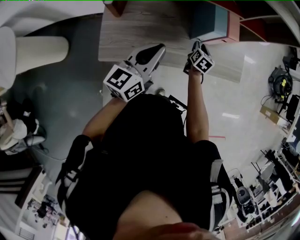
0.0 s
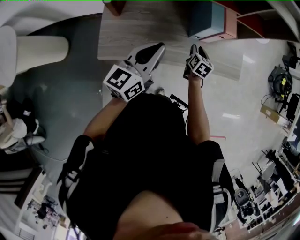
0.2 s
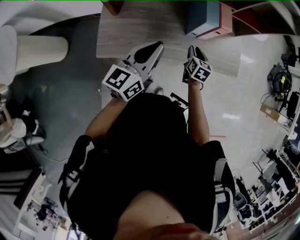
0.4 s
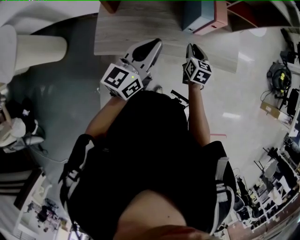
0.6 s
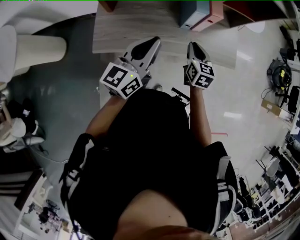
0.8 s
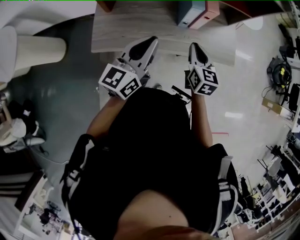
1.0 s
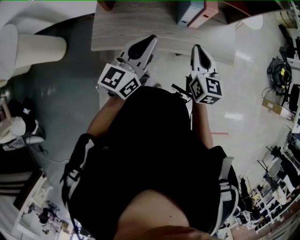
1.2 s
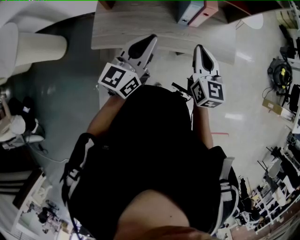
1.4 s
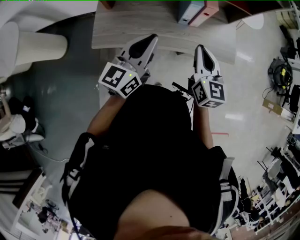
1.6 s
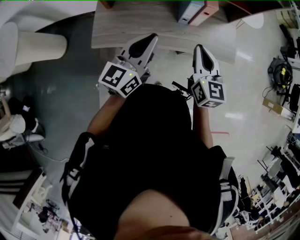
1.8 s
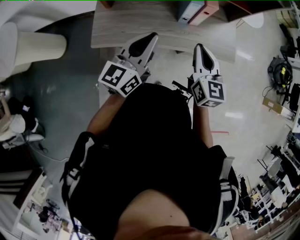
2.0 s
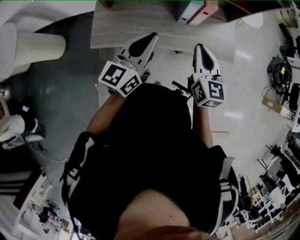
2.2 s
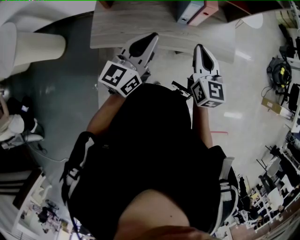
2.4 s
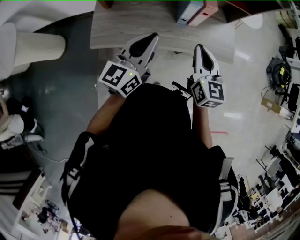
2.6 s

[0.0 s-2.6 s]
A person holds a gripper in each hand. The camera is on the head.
0.0 to 1.2 s: The right gripper heads upward and backward, covering about 30 cm, and swivels some 30 degrees. Meanwhile the left gripper travels to the right, backward and upward by roughly 10 cm.
1.2 to 2.6 s: There are only small adjustments of the grippers.

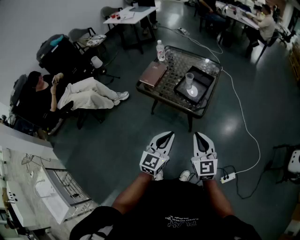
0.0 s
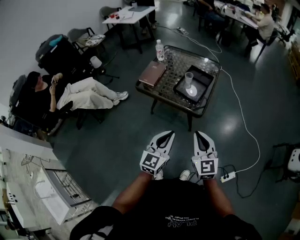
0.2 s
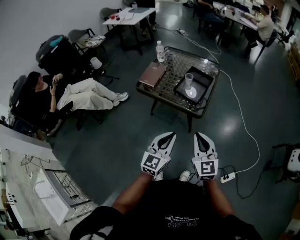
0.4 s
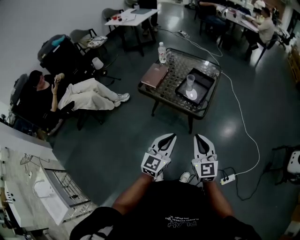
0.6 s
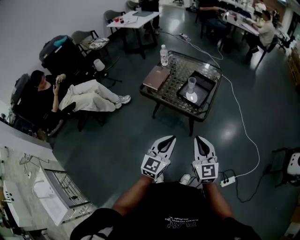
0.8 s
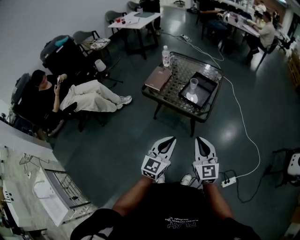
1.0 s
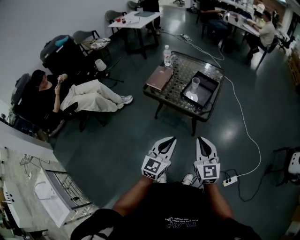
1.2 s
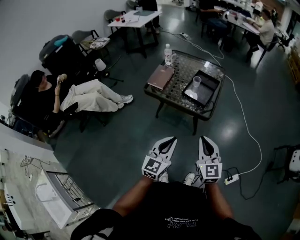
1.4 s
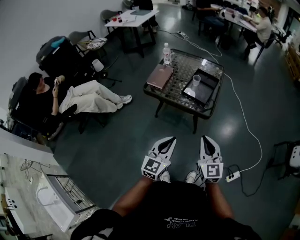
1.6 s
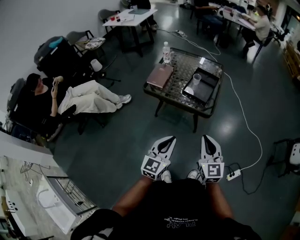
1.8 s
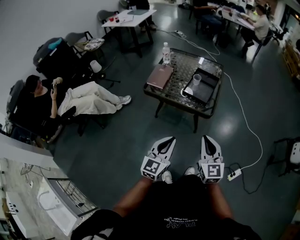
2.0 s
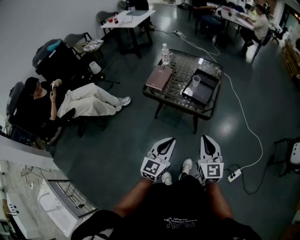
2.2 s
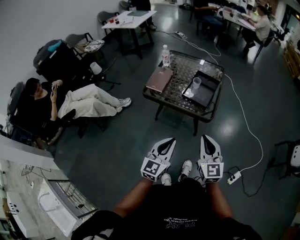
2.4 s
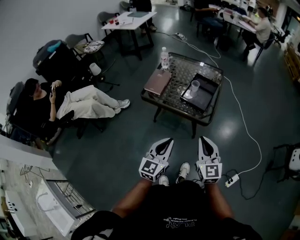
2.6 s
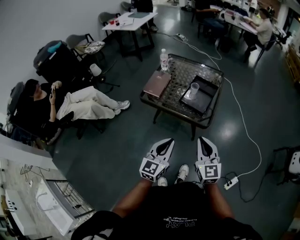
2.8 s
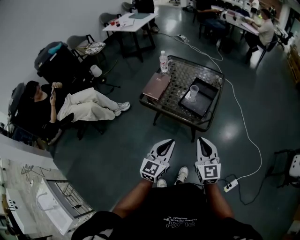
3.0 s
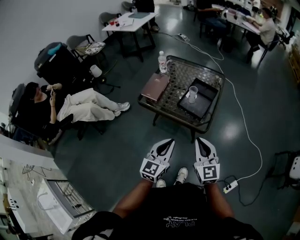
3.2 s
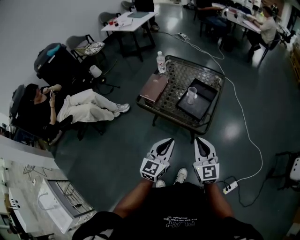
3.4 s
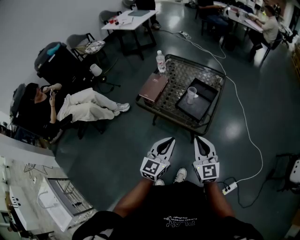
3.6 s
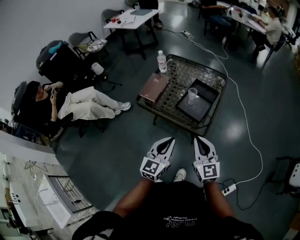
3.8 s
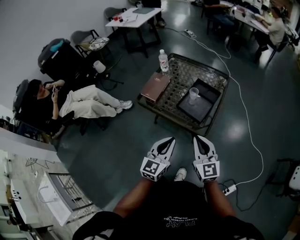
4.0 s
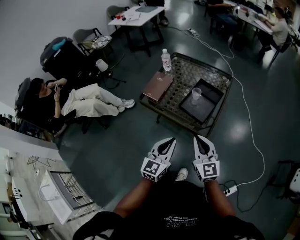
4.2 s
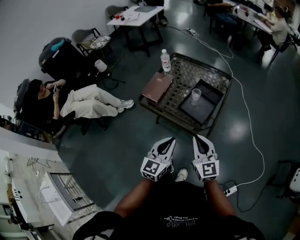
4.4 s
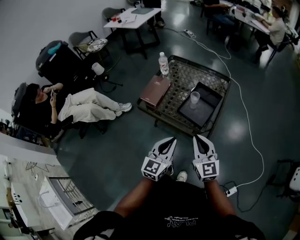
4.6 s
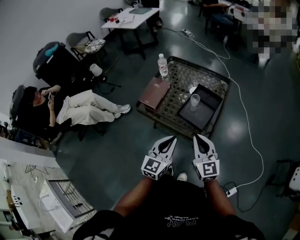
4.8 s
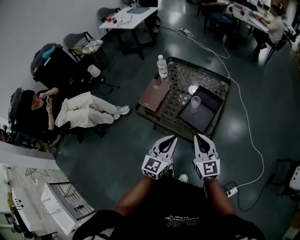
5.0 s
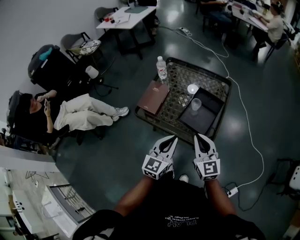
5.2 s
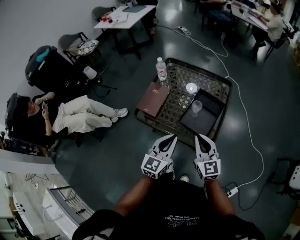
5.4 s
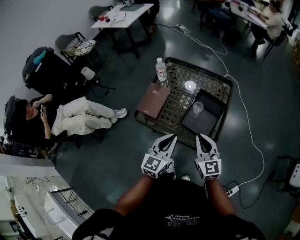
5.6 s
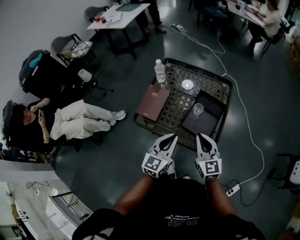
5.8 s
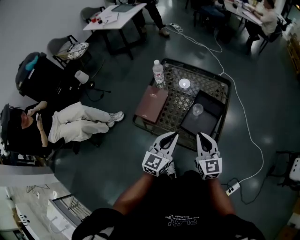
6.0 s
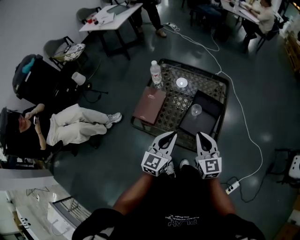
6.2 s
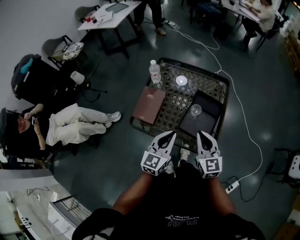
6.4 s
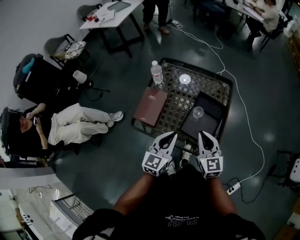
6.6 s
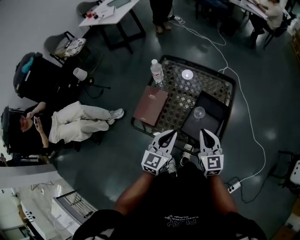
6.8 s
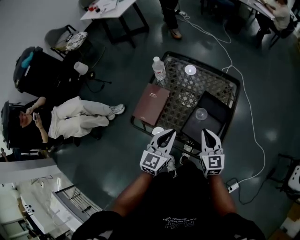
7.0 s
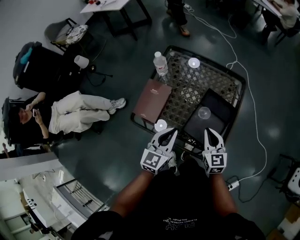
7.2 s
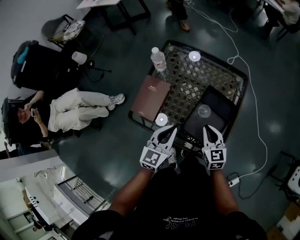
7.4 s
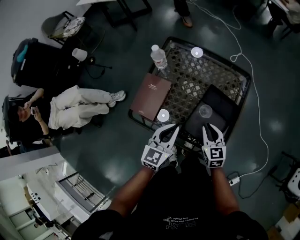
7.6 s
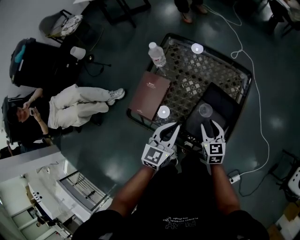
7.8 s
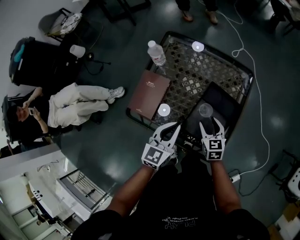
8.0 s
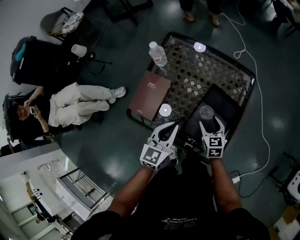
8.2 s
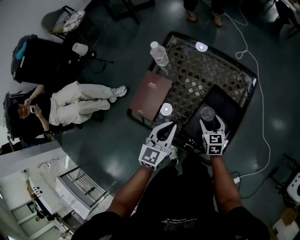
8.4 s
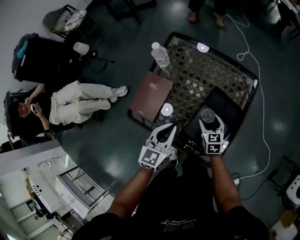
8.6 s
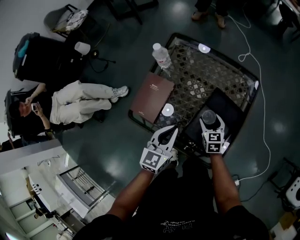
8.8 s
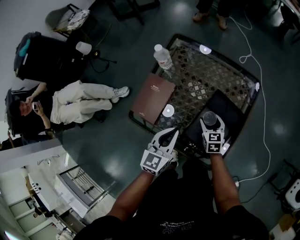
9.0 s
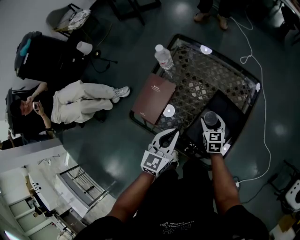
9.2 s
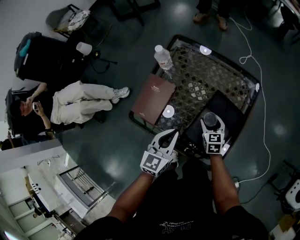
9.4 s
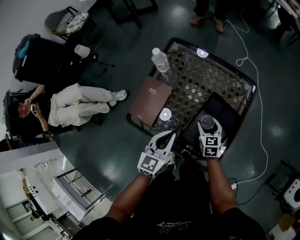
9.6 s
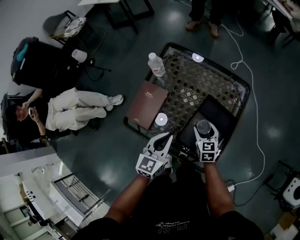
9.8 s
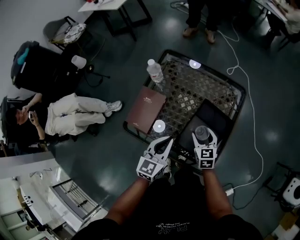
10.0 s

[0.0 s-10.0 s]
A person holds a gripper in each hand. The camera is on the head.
0.0 to 1.4 s: The right gripper moves some 5 cm. Meanwhile the left gripper is displaced to the left by roughly 5 cm.
1.4 to 2.8 s: The two grippers go about 5 cm forward.
2.8 to 4.2 s: The right gripper moves forward, approximately 10 cm, while the left gripper travels forward and to the right by roughly 10 cm.
4.2 to 5.8 s: The grippers both shift forward by about 15 cm.
5.8 to 7.2 s: Both grippers travel together forward and downward, roughly 15 cm.
7.2 to 8.6 s: The right gripper heads downward and forward, covering approximately 15 cm, and opens. The left gripper moves downward, roughly 5 cm.
8.6 to 10.0 s: The right gripper heads upward, covering about 5 cm.

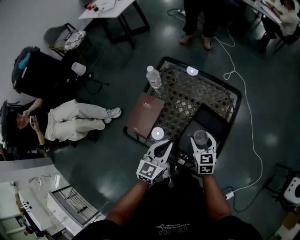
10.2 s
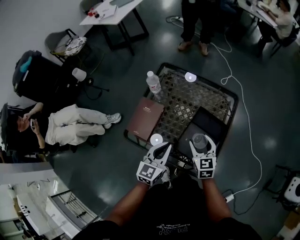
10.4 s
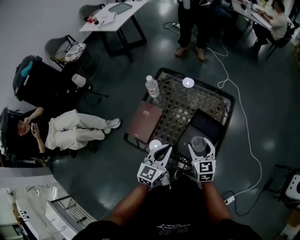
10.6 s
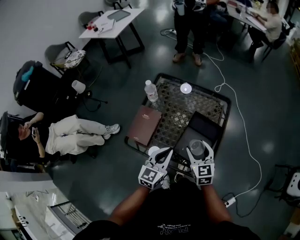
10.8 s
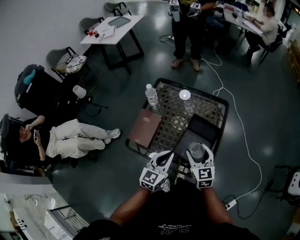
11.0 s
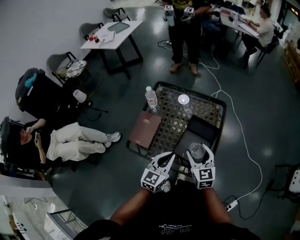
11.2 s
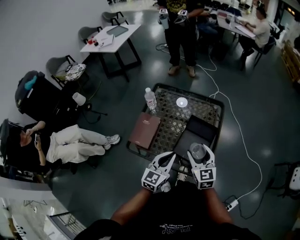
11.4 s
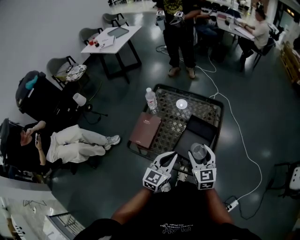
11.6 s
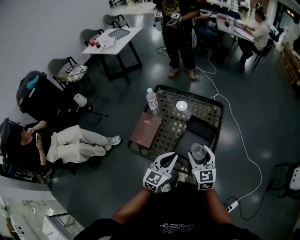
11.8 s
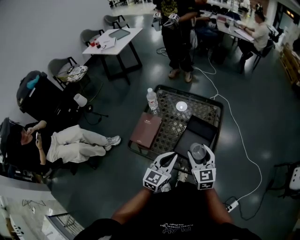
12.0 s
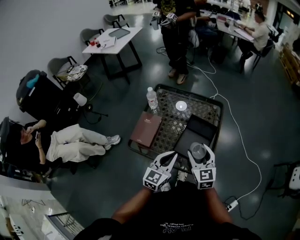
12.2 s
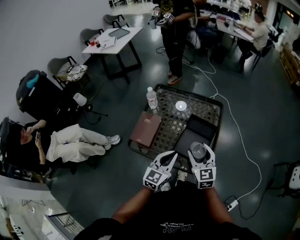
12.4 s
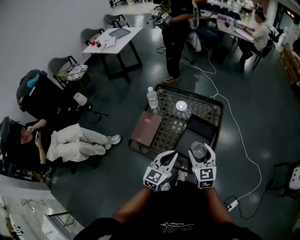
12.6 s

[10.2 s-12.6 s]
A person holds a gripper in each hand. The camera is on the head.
10.2 to 11.4 s: The left gripper heads upward and backward, covering about 10 cm, while the right gripper is displaced upward and backward by roughly 15 cm.
11.4 to 12.6 s: The grippers stay close to where they were, moving slightly.

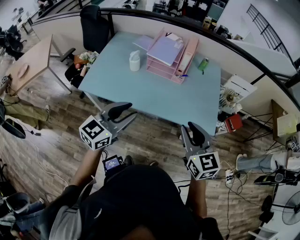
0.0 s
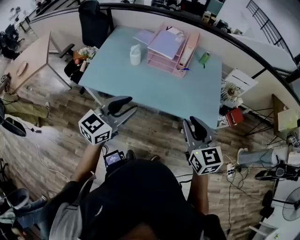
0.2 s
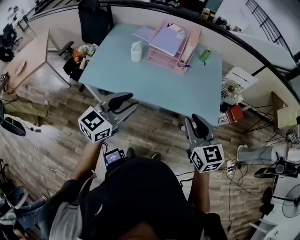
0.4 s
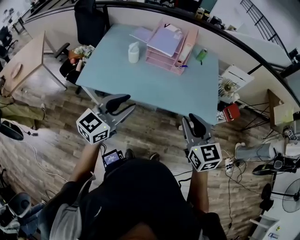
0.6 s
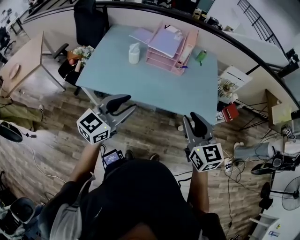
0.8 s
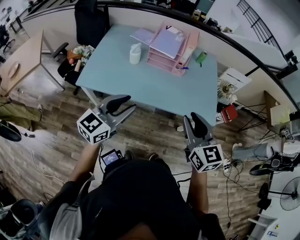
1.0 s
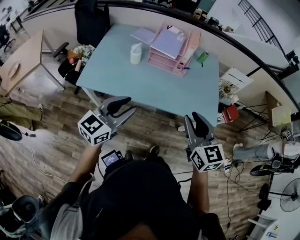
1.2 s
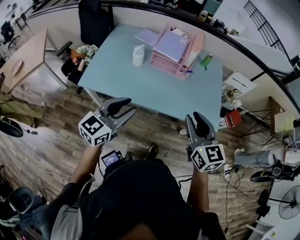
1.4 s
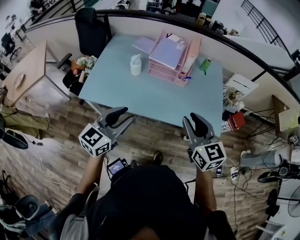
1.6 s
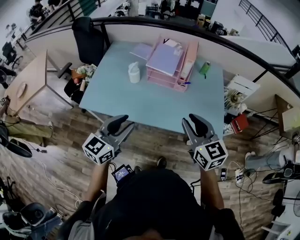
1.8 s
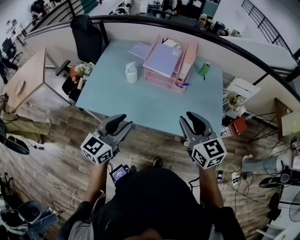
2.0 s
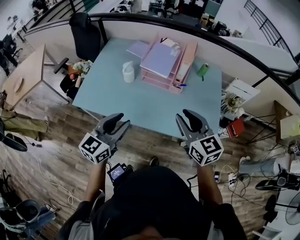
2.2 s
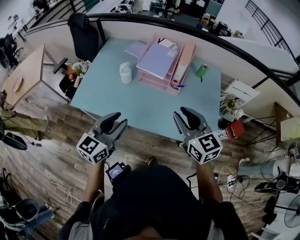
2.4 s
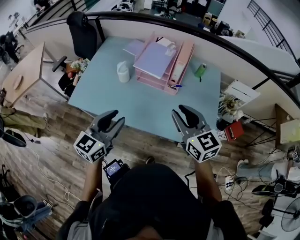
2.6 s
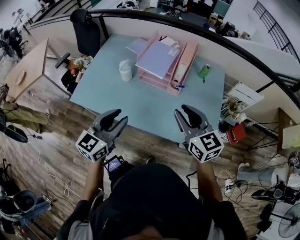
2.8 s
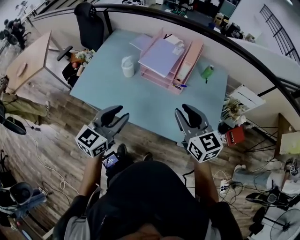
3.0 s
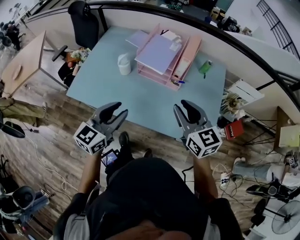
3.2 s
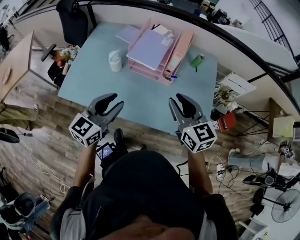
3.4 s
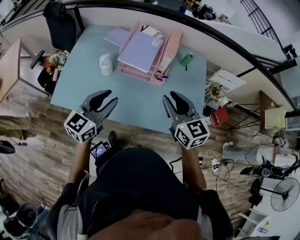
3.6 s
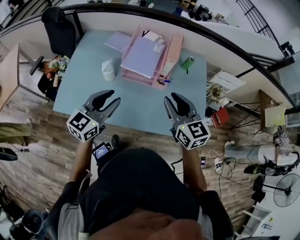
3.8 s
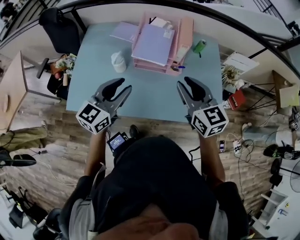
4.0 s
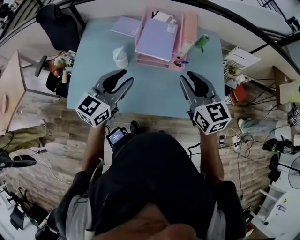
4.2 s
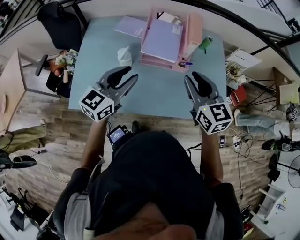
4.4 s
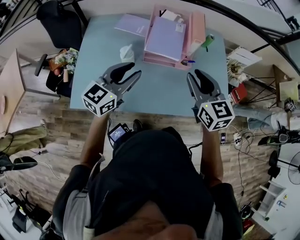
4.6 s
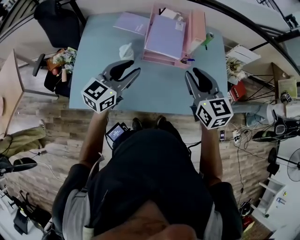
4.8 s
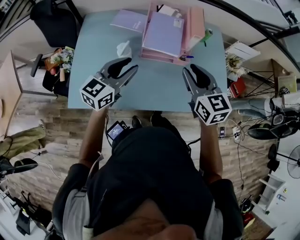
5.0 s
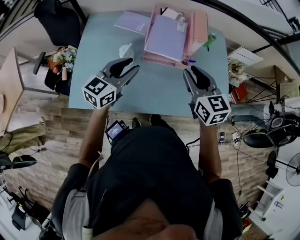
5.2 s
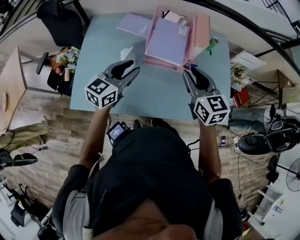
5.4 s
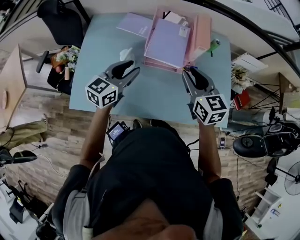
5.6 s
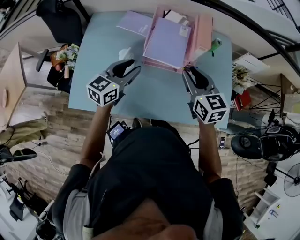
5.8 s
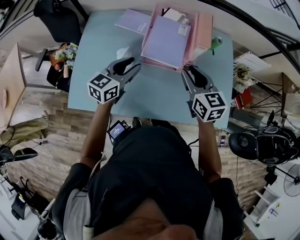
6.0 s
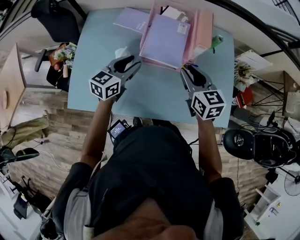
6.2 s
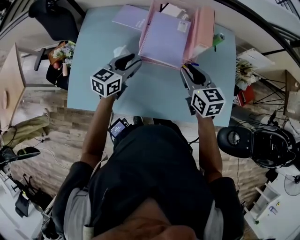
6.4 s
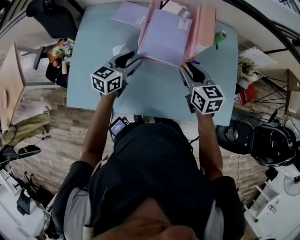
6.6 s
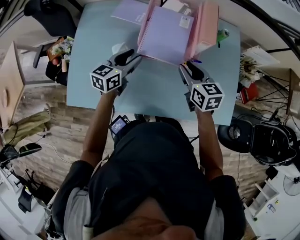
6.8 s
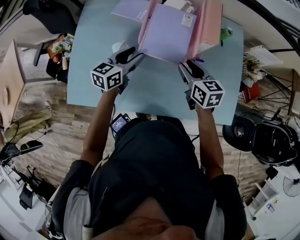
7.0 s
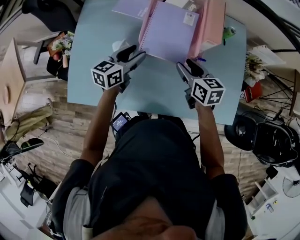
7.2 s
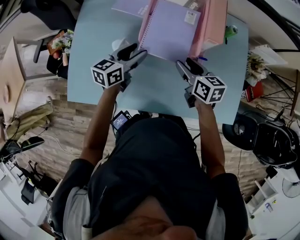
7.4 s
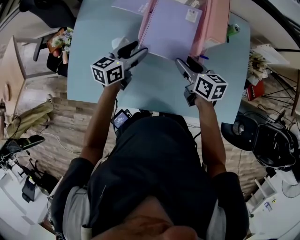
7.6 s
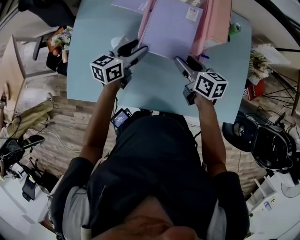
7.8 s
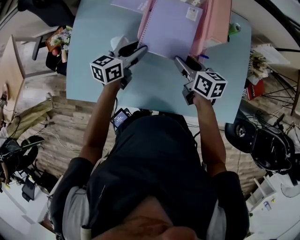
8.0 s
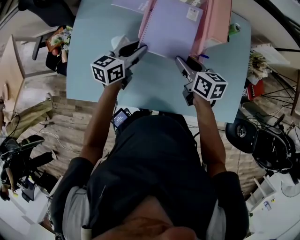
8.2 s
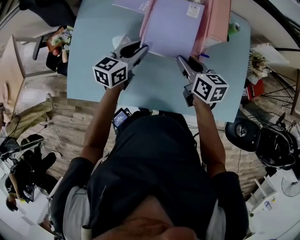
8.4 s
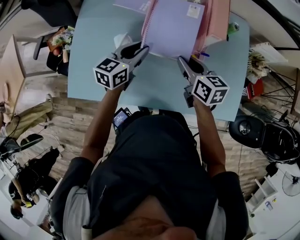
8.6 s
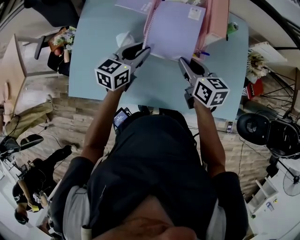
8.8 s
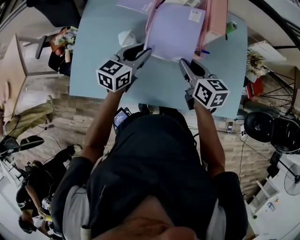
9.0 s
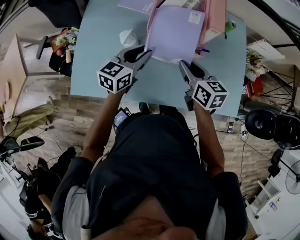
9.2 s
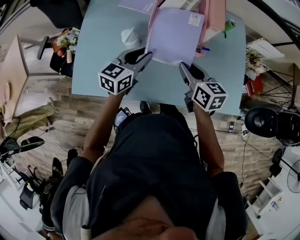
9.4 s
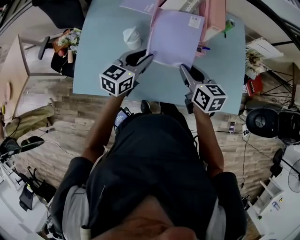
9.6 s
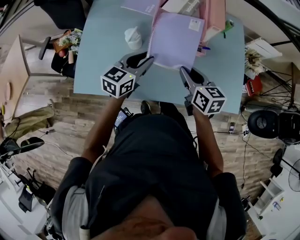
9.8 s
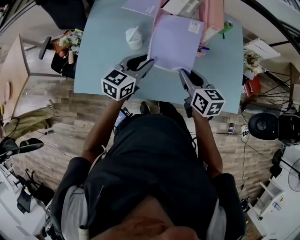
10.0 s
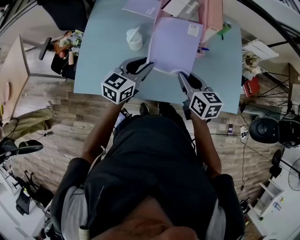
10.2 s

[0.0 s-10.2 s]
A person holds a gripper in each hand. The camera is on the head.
0.0 to 1.4 s: Both grippers travel together to the left, roughly 5 cm.
1.4 to 3.0 s: The left gripper shifts about 15 cm forward and to the right. Meanwhile the right gripper is displaced forward by about 20 cm.
3.0 to 4.4 s: The left gripper moves forward and to the left, some 20 cm, and changes its angle by approximately 20 degrees, while the right gripper moves to the left and forward, some 10 cm, and changes its angle by about 20 degrees.
4.4 to 5.8 s: Both grippers move forward and downward, roughly 10 cm.
5.8 to 7.2 s: Both grippers travel together downward and forward, approximately 15 cm. The right gripper swivels some 20 degrees.
7.2 to 8.8 s: The grippers move only a little.
8.8 to 10.2 s: Both grippers move backward, some 10 cm.
